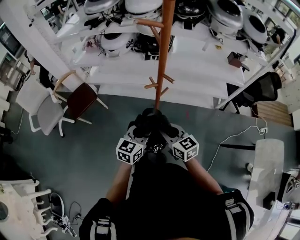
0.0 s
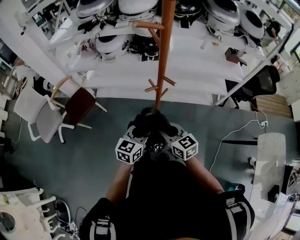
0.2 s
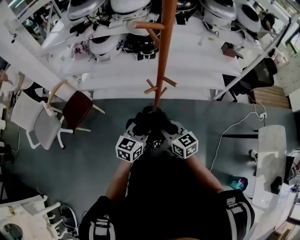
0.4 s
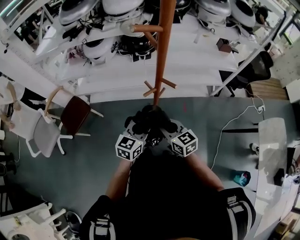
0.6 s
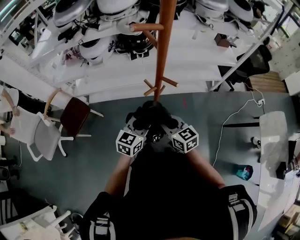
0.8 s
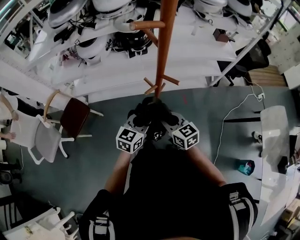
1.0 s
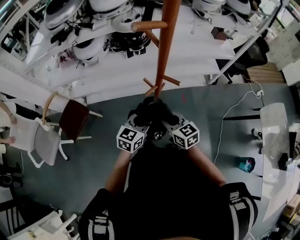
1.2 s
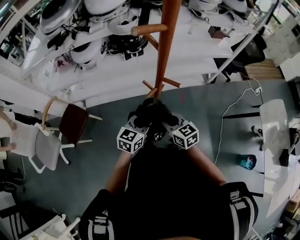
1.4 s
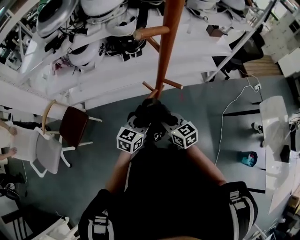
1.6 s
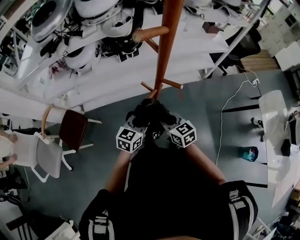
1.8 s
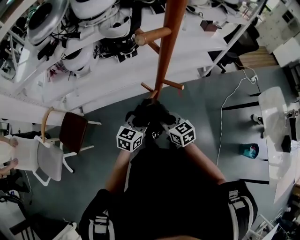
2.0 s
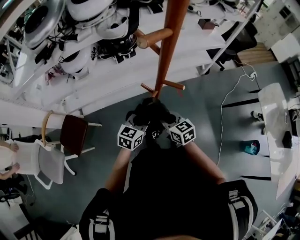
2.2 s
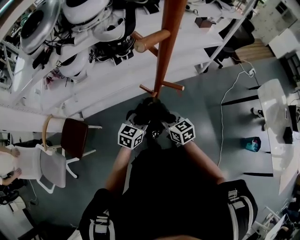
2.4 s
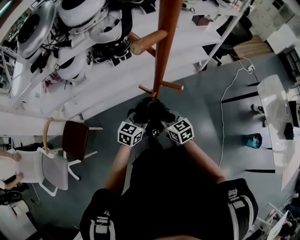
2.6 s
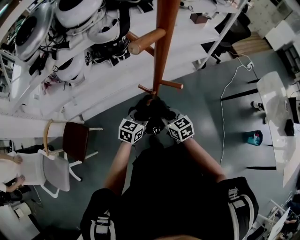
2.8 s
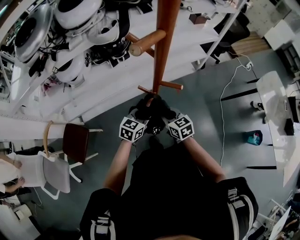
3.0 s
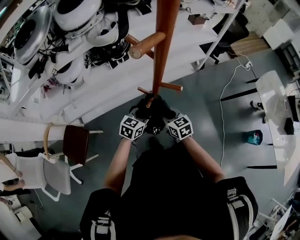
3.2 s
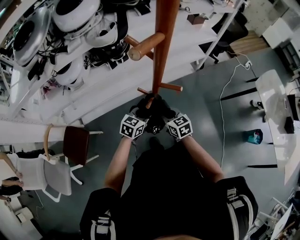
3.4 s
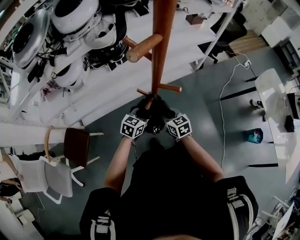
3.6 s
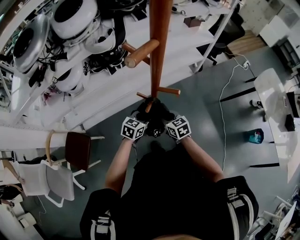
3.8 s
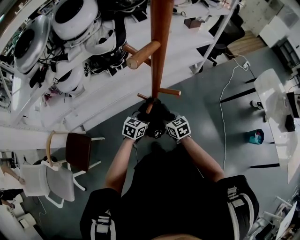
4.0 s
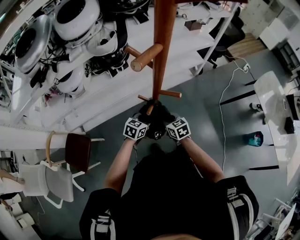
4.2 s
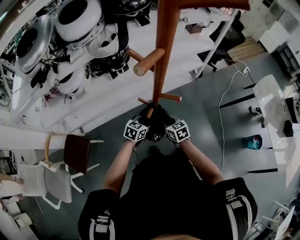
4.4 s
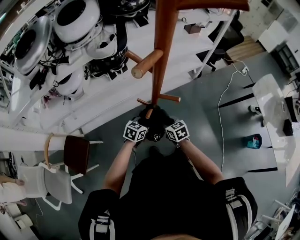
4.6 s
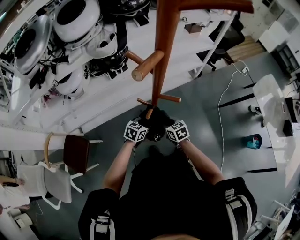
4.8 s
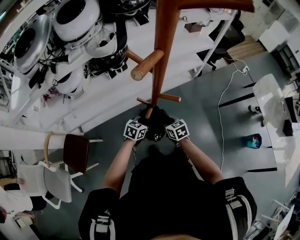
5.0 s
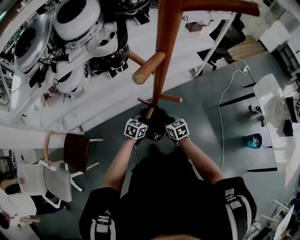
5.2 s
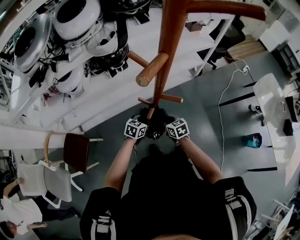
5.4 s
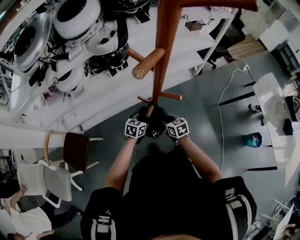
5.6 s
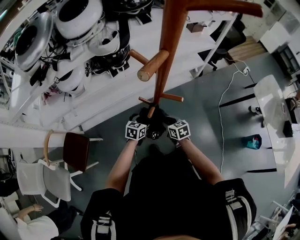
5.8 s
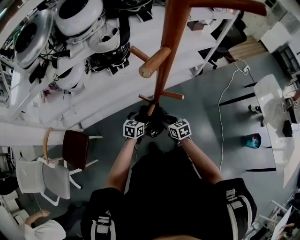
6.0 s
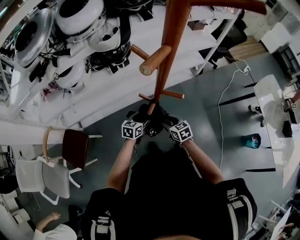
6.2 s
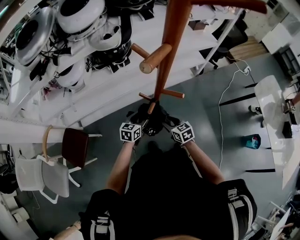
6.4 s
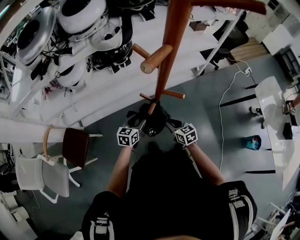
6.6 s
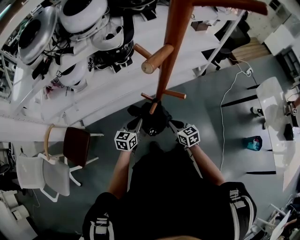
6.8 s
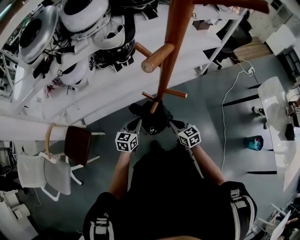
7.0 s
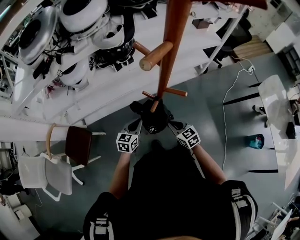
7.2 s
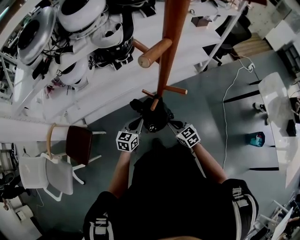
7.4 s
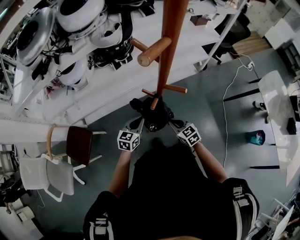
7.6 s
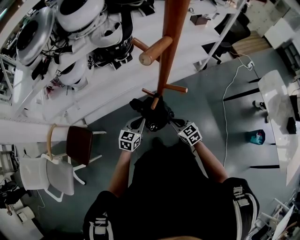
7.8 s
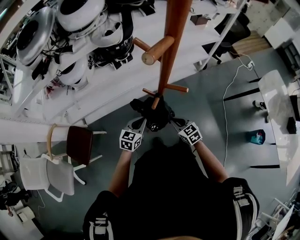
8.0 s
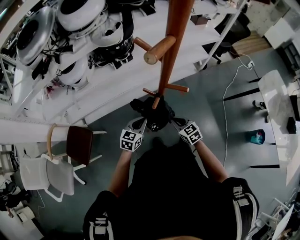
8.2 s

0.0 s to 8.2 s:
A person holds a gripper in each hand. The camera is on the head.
0.0 to 1.6 s: The grippers both shift forward and to the left by roughly 20 cm. The left gripper changes its angle by roughly 20 degrees.
1.6 to 3.2 s: The right gripper is displaced downward and forward by roughly 10 cm, while the left gripper heads forward and downward, covering approximately 10 cm.
3.2 to 5.0 s: The grippers both shift downward by approximately 5 cm.
5.0 to 6.6 s: The left gripper heads to the left, covering roughly 5 cm, changes its angle by about 20 degrees, and opens its fingers. Meanwhile the right gripper opens, then closes once more.
6.6 to 8.2 s: The left gripper closes up.

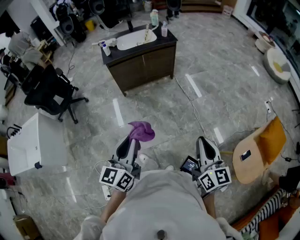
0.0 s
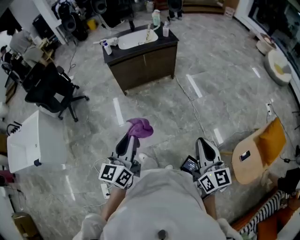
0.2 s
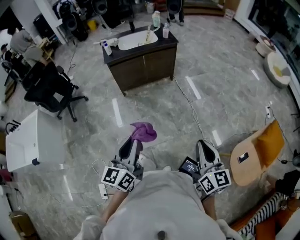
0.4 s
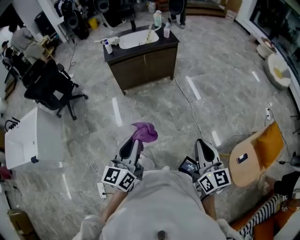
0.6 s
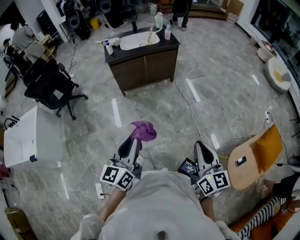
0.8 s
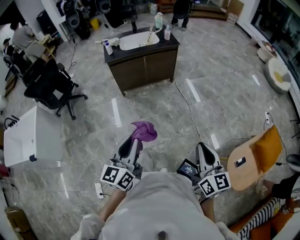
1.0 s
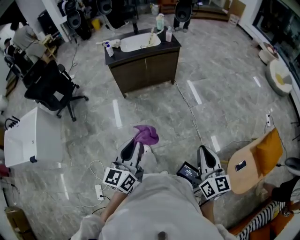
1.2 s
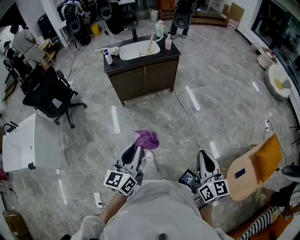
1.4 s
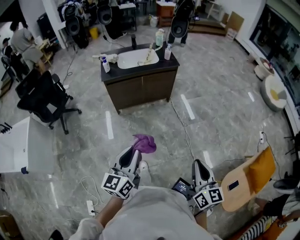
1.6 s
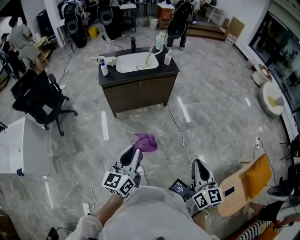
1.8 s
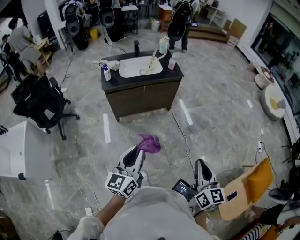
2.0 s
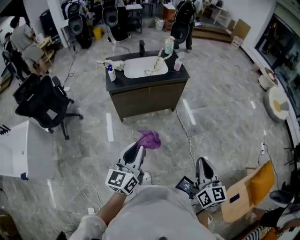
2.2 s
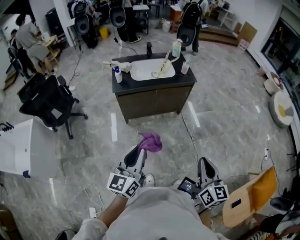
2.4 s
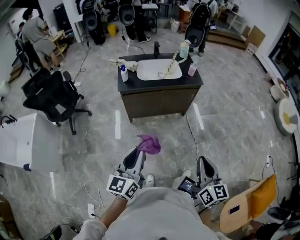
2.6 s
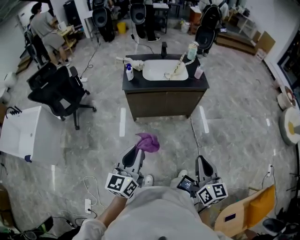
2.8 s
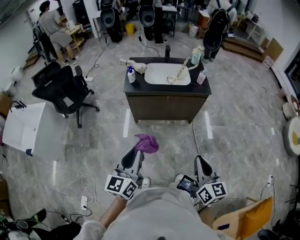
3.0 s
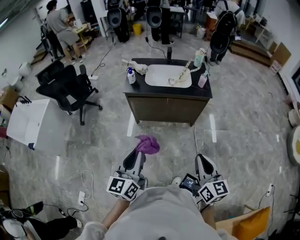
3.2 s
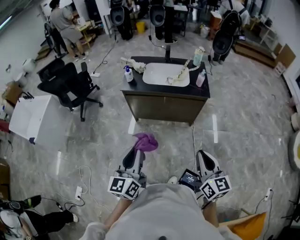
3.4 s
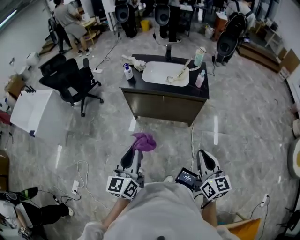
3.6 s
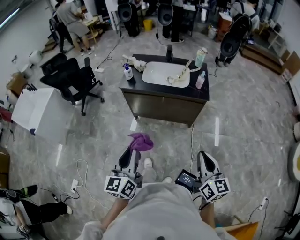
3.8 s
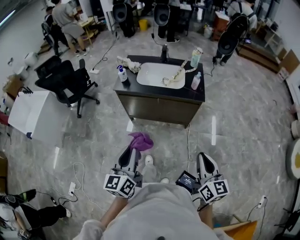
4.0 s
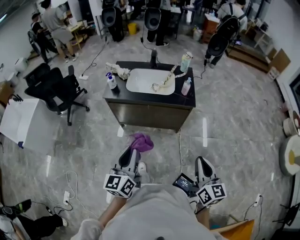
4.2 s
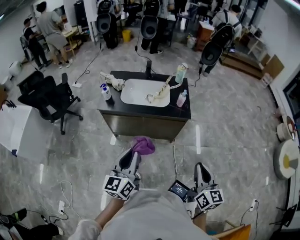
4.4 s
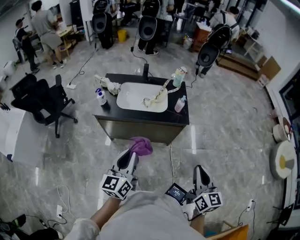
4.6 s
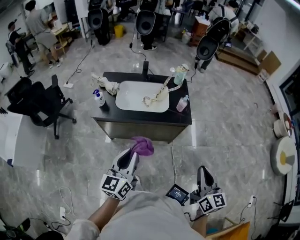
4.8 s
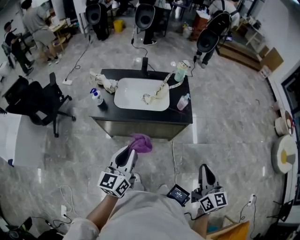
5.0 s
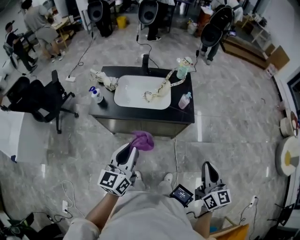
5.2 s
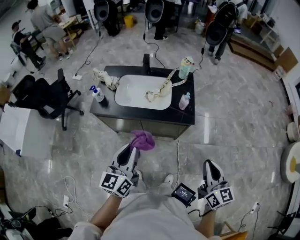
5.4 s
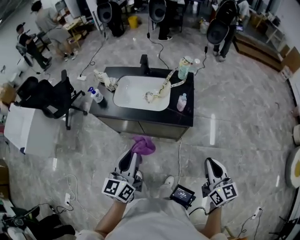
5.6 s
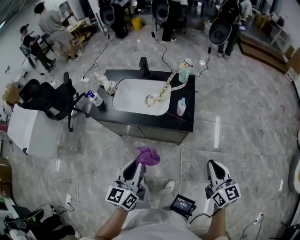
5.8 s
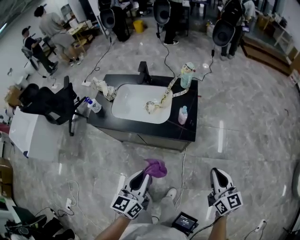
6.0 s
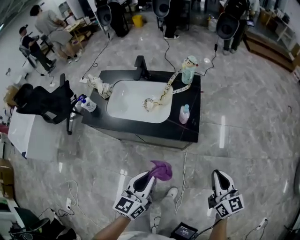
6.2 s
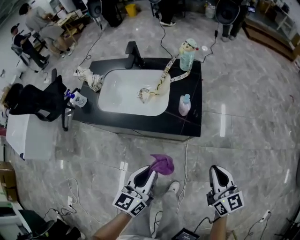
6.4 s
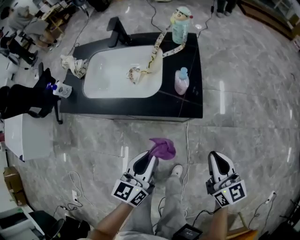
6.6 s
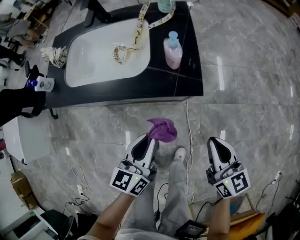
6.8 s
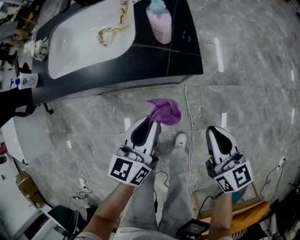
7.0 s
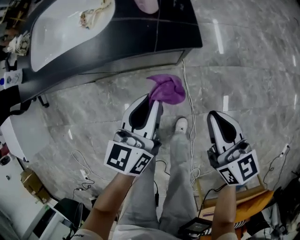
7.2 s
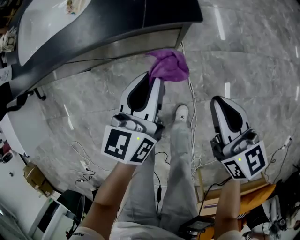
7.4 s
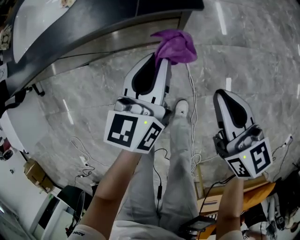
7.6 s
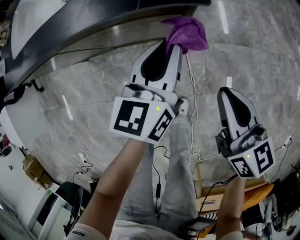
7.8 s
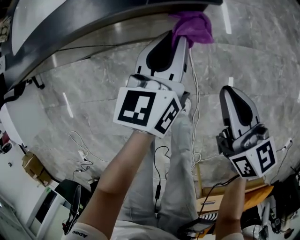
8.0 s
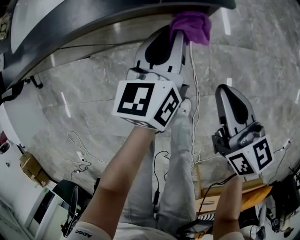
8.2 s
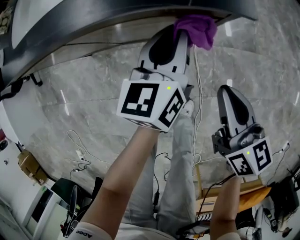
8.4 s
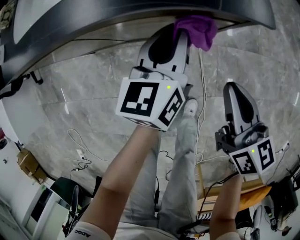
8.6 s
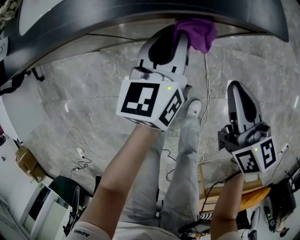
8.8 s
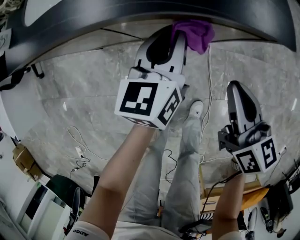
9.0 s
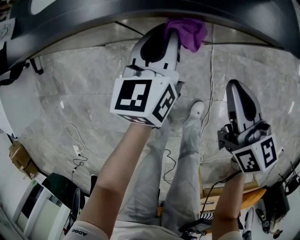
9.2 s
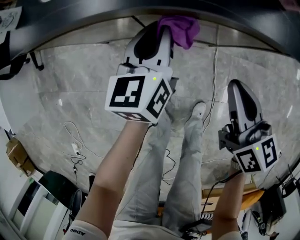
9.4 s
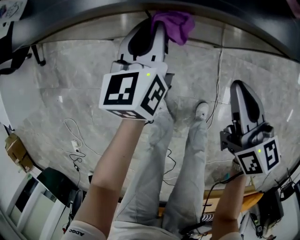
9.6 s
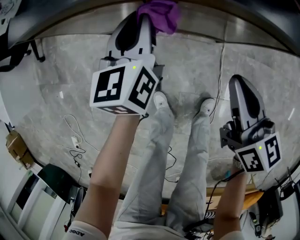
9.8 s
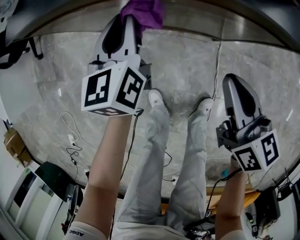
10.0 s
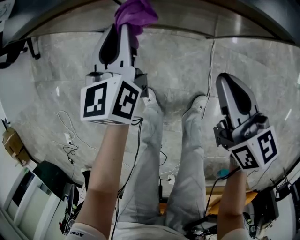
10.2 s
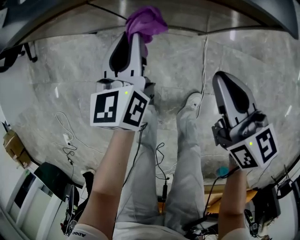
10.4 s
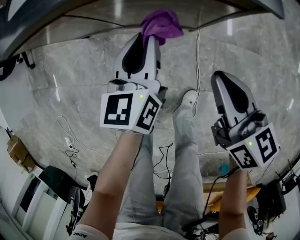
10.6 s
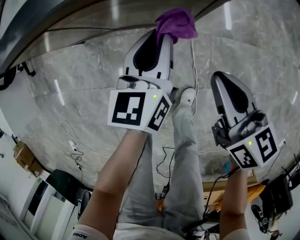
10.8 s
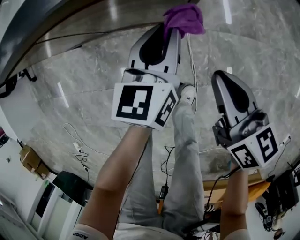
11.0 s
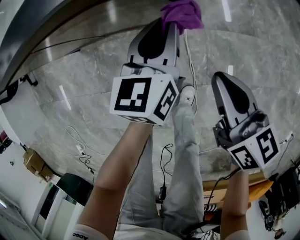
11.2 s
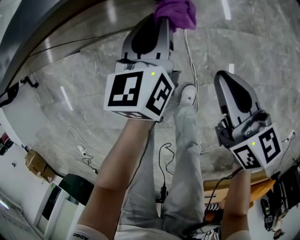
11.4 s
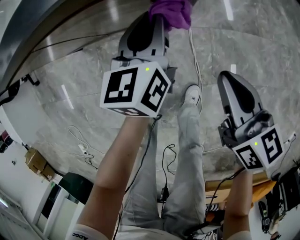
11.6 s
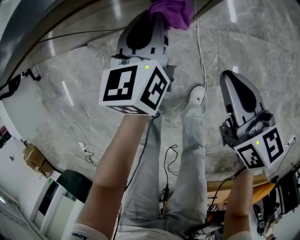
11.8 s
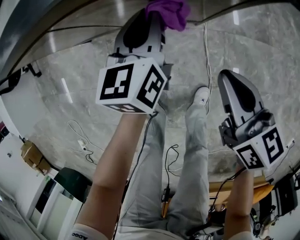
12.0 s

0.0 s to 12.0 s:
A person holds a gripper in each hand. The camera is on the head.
0.0 to 1.6 s: Both grippers travel together forward, approximately 10 cm.
1.6 to 3.0 s: The two grippers go some 25 cm forward.
3.0 to 4.4 s: Both grippers travel together to the right and forward, some 25 cm.
4.4 to 6.0 s: The right gripper heads forward, to the right and downward, covering about 30 cm. Meanwhile the left gripper goes some 25 cm to the right, forward and downward.
6.0 to 7.6 s: The left gripper goes some 35 cm downward and forward; the right gripper travels downward by some 30 cm.
7.6 to 9.0 s: The right gripper heads to the left, covering about 15 cm; the left gripper goes roughly 15 cm to the left and forward.
9.0 to 10.4 s: The left gripper heads to the left, covering about 5 cm. Meanwhile the right gripper moves roughly 10 cm to the left and comes back.
10.4 to 12.0 s: The left gripper travels to the right and downward by some 10 cm. The right gripper moves downward, approximately 5 cm, and goes to the right and returns, about 15 cm each way.

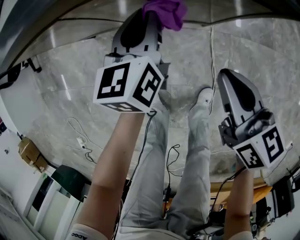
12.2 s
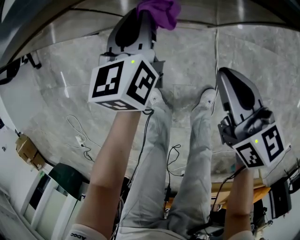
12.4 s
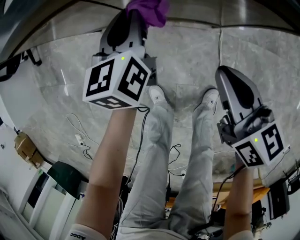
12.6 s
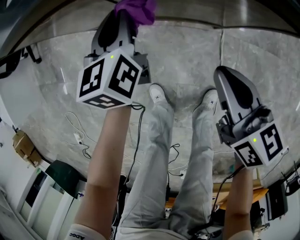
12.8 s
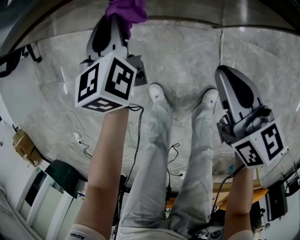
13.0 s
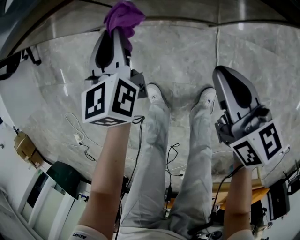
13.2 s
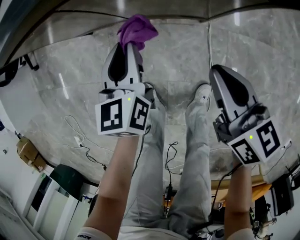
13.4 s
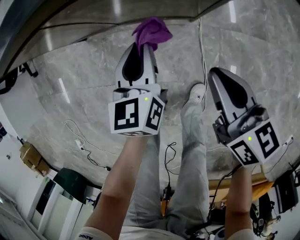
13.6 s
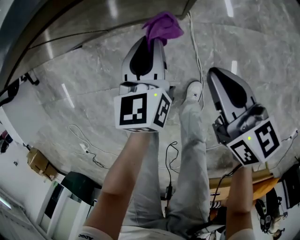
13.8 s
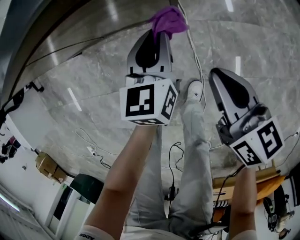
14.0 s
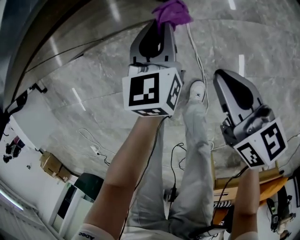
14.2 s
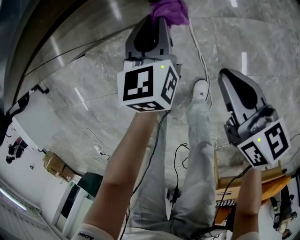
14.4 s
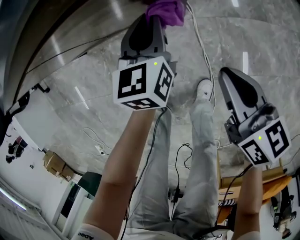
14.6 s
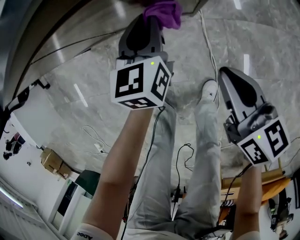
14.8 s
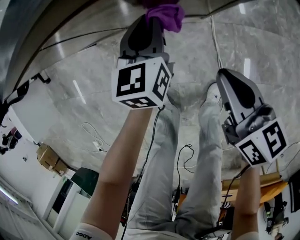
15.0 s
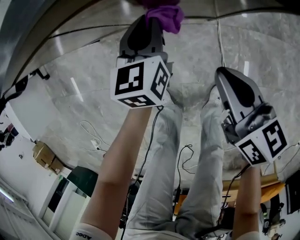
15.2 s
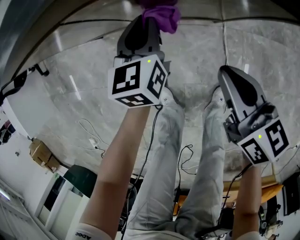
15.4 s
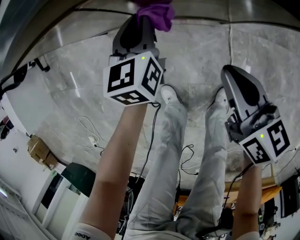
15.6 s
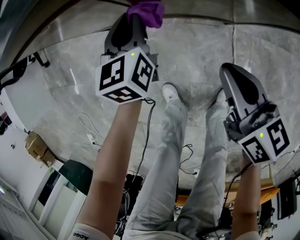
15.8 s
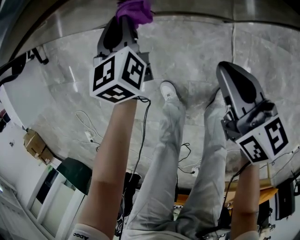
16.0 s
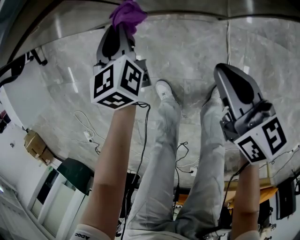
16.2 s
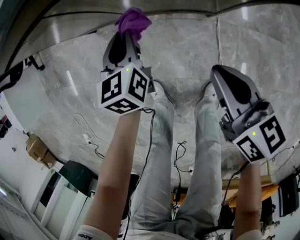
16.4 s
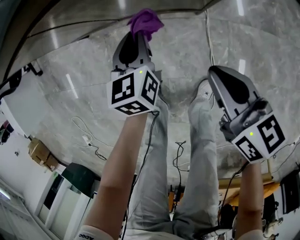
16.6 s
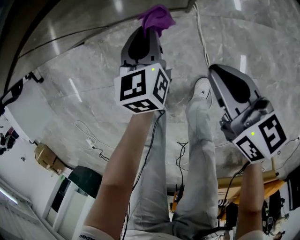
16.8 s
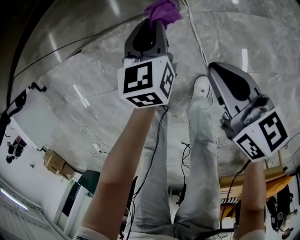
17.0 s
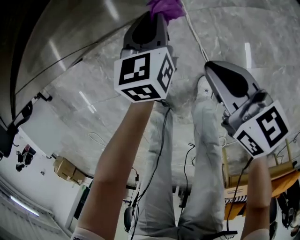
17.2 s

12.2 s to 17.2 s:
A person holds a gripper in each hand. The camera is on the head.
12.2 to 13.8 s: The left gripper heads backward and to the right, covering approximately 15 cm. The right gripper goes approximately 10 cm to the right and backward.
13.8 to 15.6 s: The two grippers go some 20 cm to the left and forward.
15.6 to 17.2 s: The right gripper heads to the right and backward, covering some 20 cm. Meanwhile the left gripper heads to the right and backward, covering roughly 30 cm.
